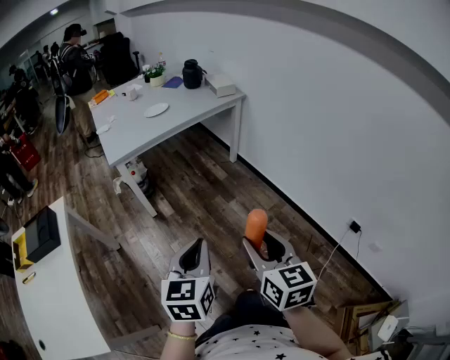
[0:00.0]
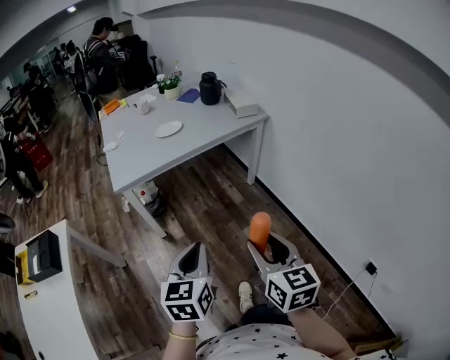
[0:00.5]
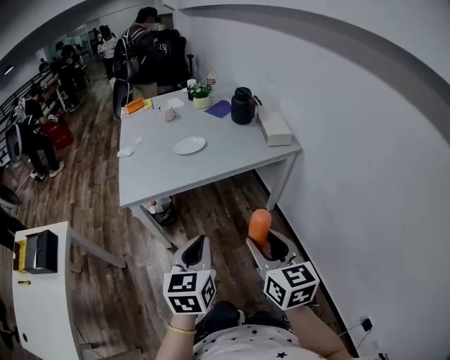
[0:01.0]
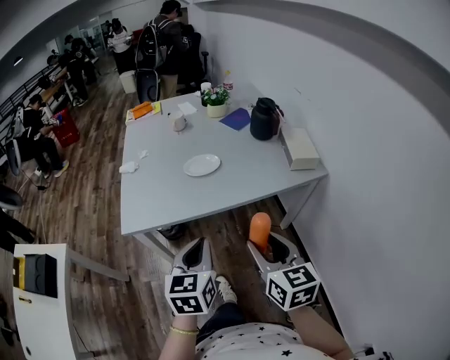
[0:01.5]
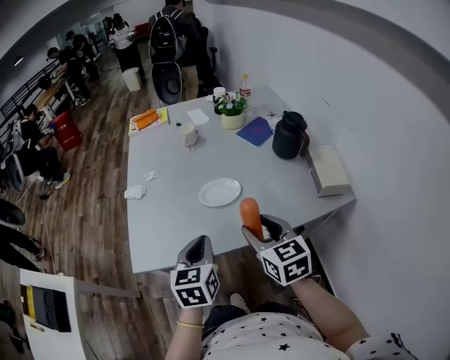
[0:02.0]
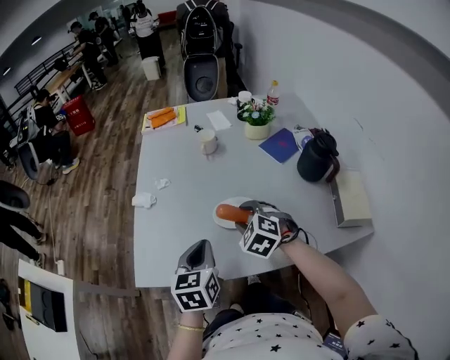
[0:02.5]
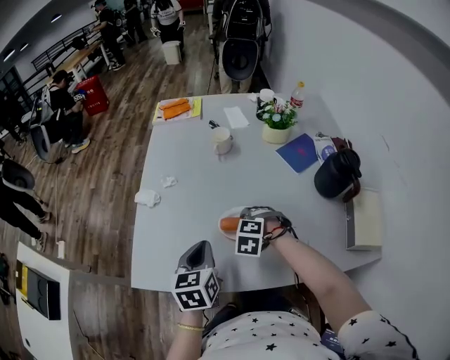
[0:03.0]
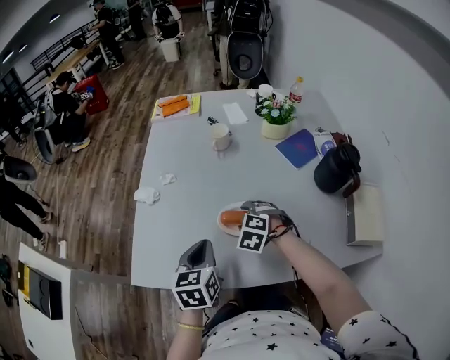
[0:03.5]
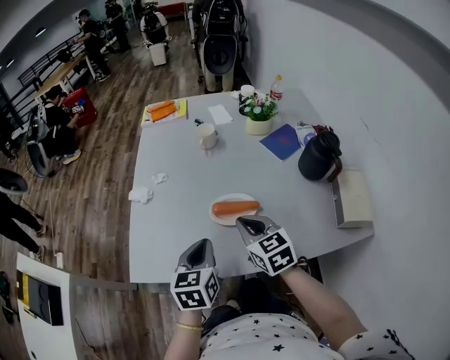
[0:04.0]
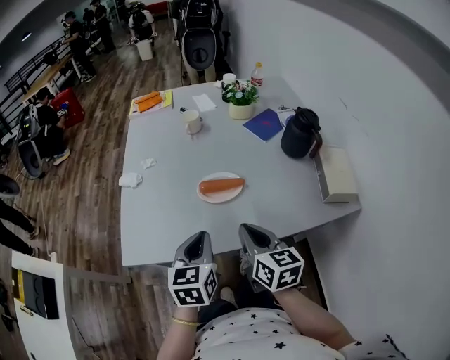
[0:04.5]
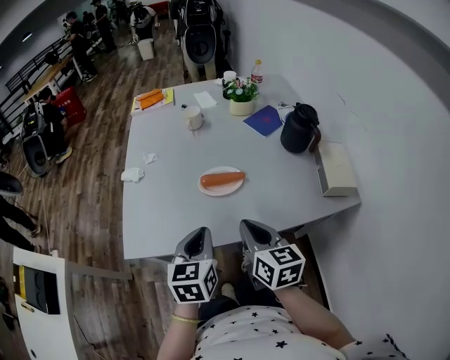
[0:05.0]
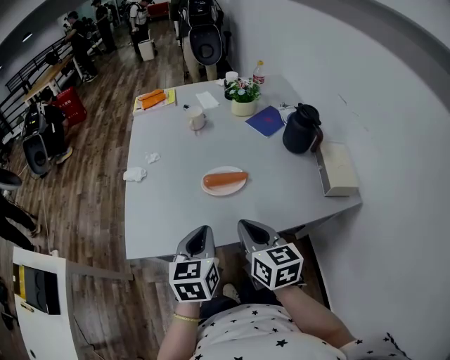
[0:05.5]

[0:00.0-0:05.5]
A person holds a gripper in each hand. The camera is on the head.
0:00.0 to 0:02.0: Both grippers are carried about 80 cm. The left gripper swivels roughly 30 degrees. Meanwhile the right gripper turns by some 30 degrees.
0:02.0 to 0:03.5: The left gripper moves forward, roughly 15 cm. Meanwhile the right gripper travels forward and downward by roughly 30 cm, and twists some 60 degrees counterclockwise, seen from behind.
0:03.5 to 0:05.5: The right gripper travels backward and upward by approximately 25 cm, rotates around the line of its fingers by approximately 70 degrees, clockwise from behind, and closes; the left gripper moves backward, about 15 cm.

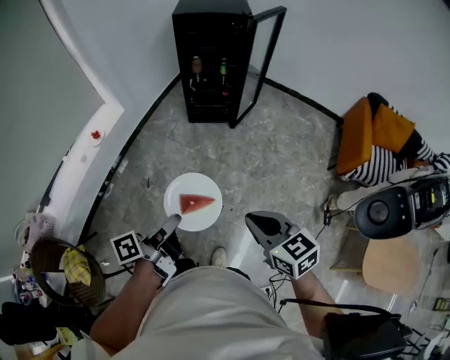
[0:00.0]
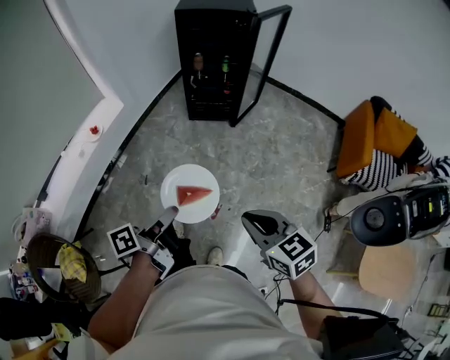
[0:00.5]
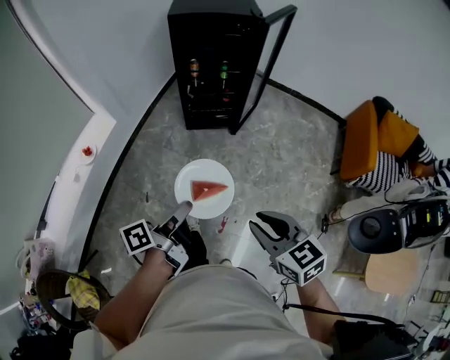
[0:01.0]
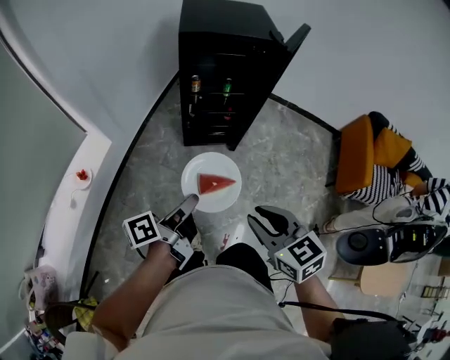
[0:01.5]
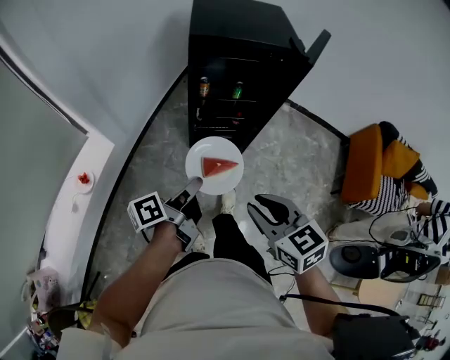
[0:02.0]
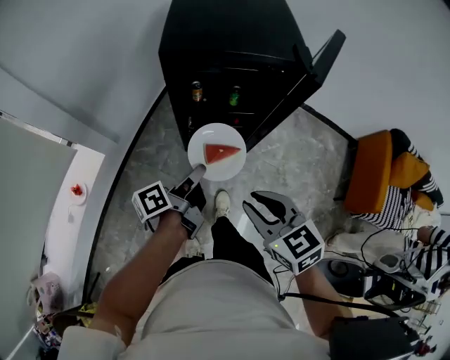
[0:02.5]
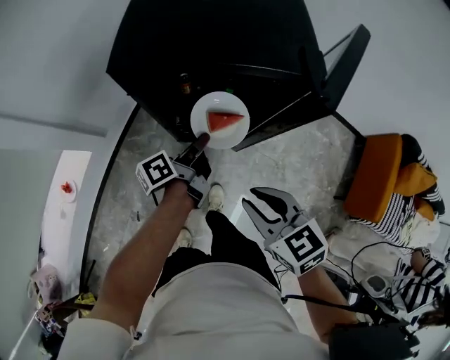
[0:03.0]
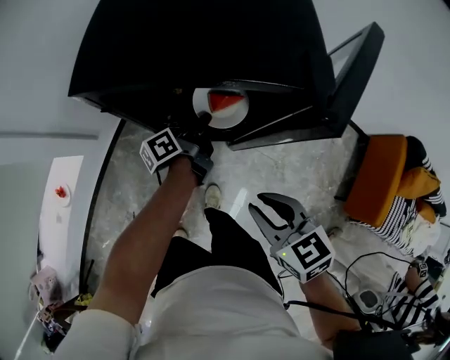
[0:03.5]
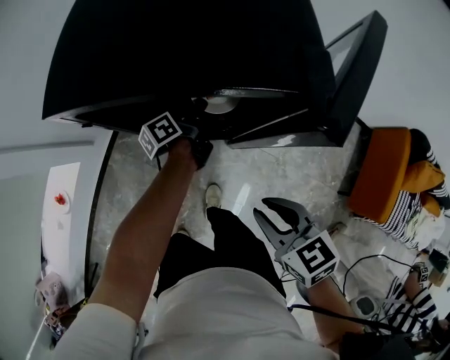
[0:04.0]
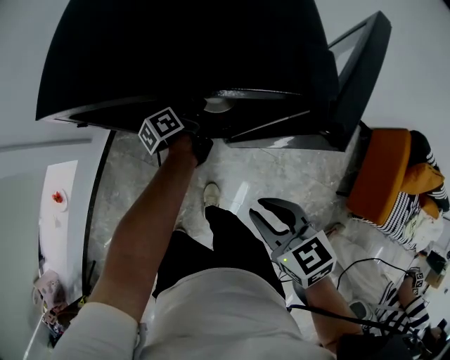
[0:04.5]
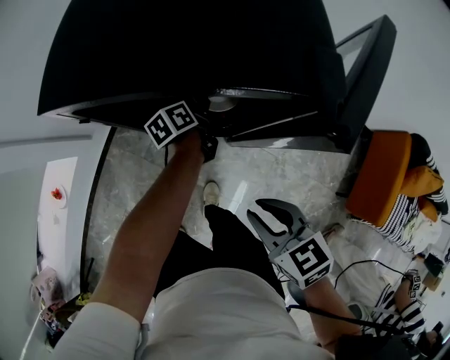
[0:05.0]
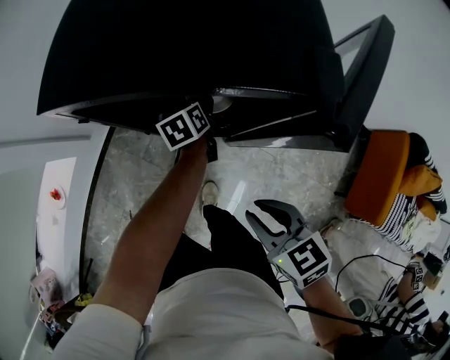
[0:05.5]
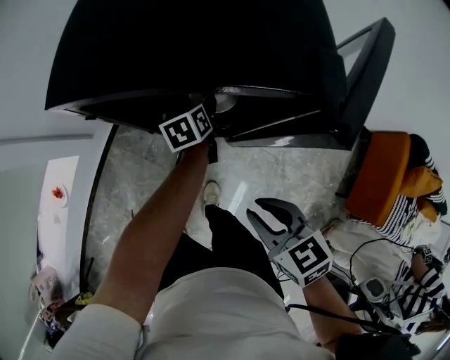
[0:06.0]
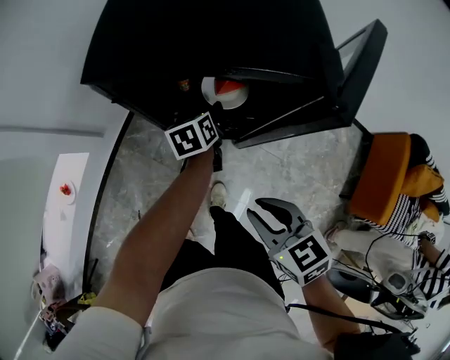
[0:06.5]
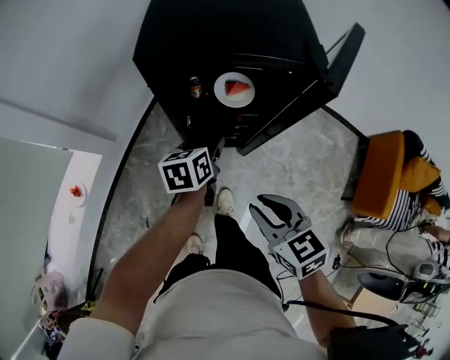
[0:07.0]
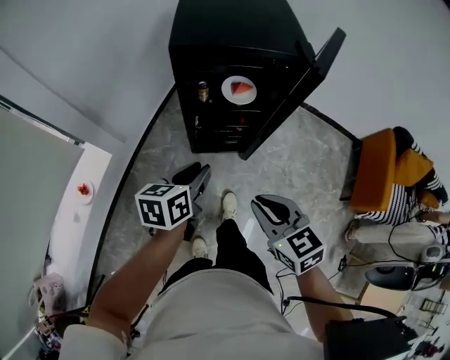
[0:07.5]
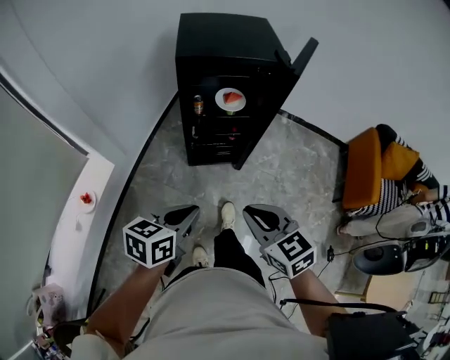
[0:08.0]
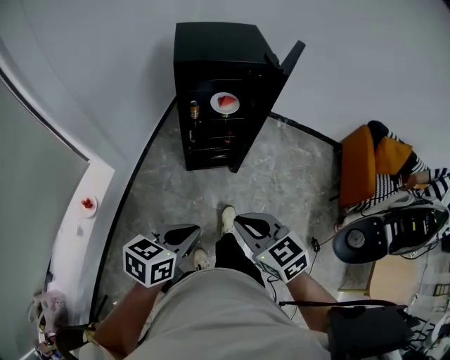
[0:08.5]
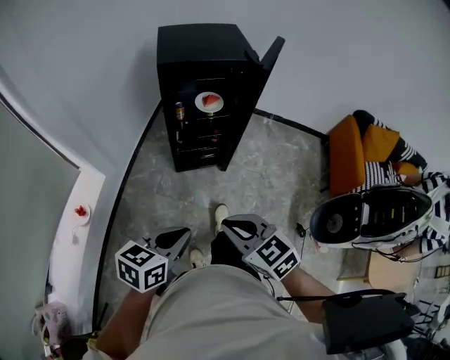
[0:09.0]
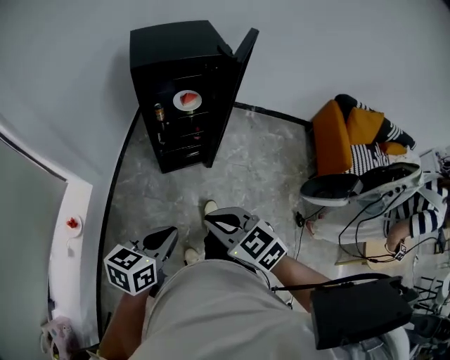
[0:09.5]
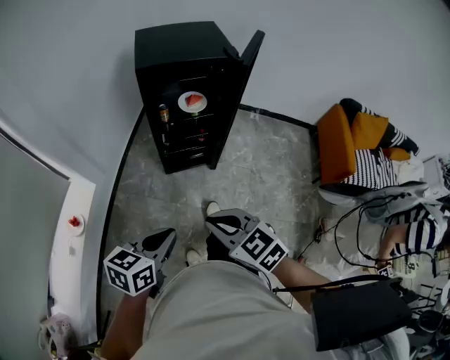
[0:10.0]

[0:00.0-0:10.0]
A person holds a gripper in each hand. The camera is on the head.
0:00.0 to 0:02.0: The two grippers travel together, forward, some 50 cm. The right gripper opens up.
0:02.0 to 0:04.0: Both grippers travel together forward and to the right, roughly 40 cm.
0:04.0 to 0:06.0: The left gripper turns by some 40 degrees, and opens.
0:06.0 to 0:08.0: The left gripper moves approximately 60 cm, rotates roughly 40 degrees, and closes its fingers; the right gripper shifts by approximately 35 cm.
0:08.0 to 0:10.0: Both grippers move backward, about 5 cm.

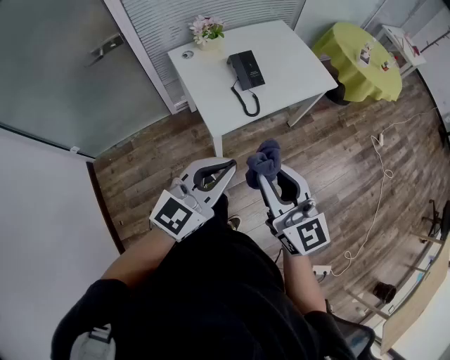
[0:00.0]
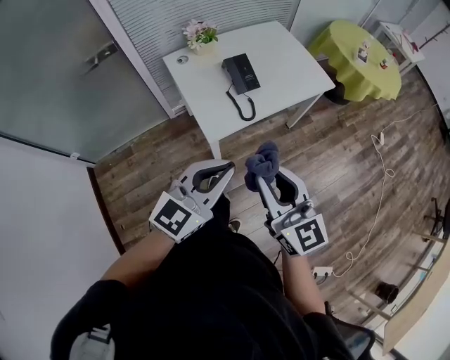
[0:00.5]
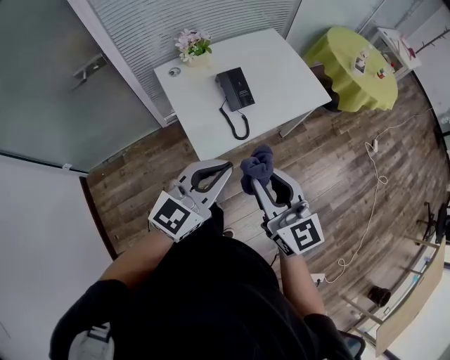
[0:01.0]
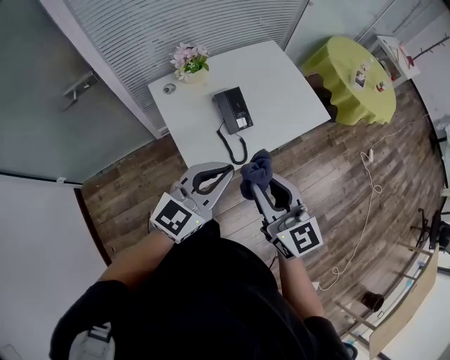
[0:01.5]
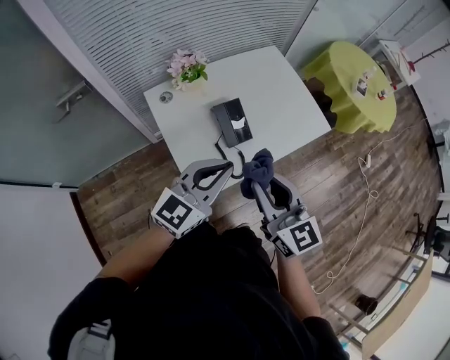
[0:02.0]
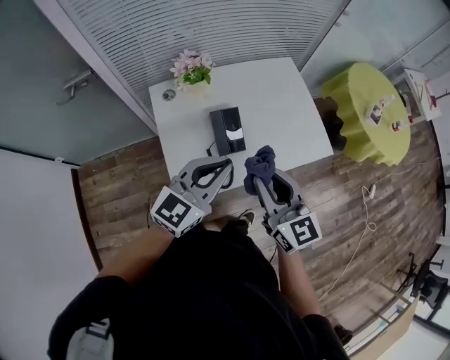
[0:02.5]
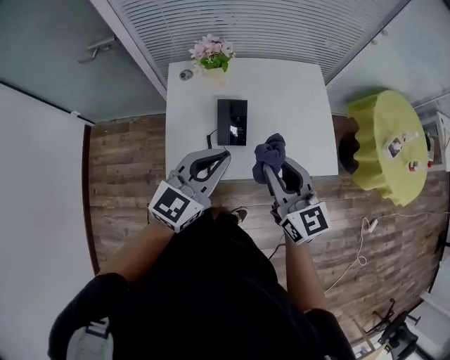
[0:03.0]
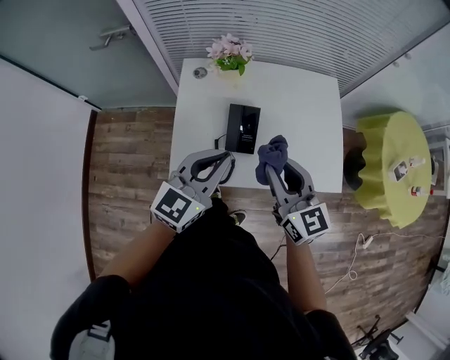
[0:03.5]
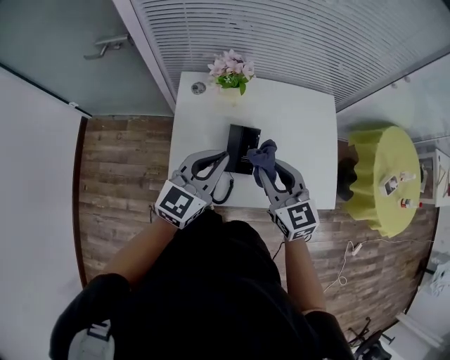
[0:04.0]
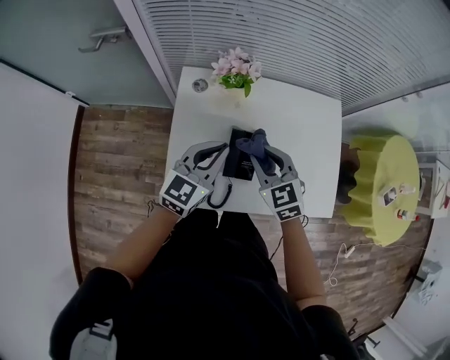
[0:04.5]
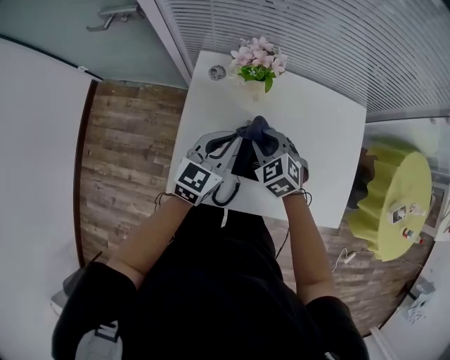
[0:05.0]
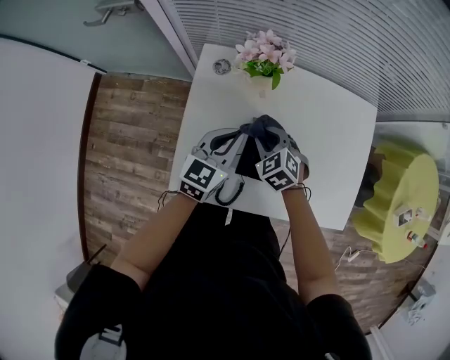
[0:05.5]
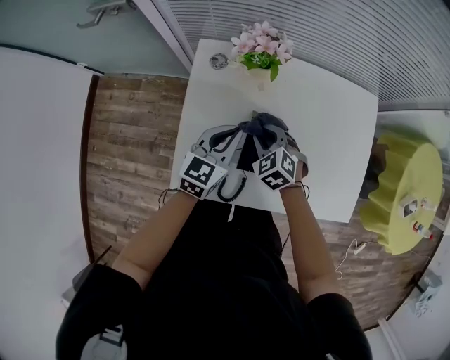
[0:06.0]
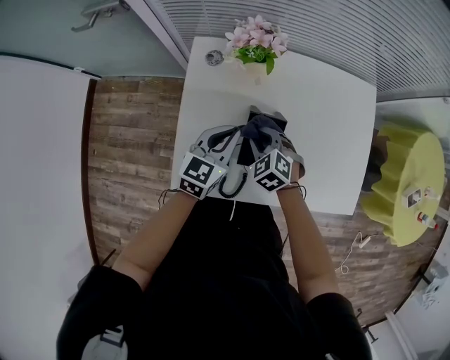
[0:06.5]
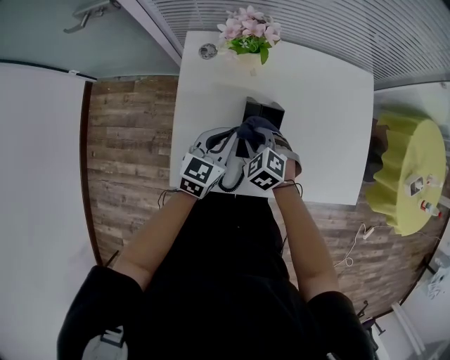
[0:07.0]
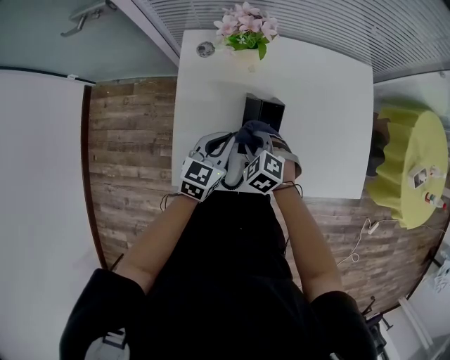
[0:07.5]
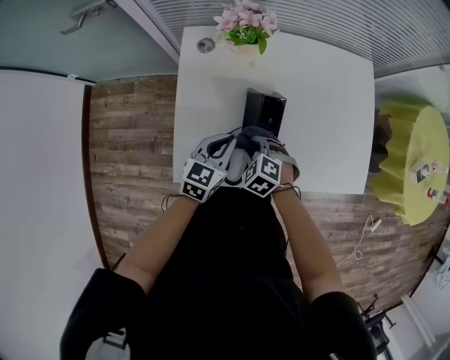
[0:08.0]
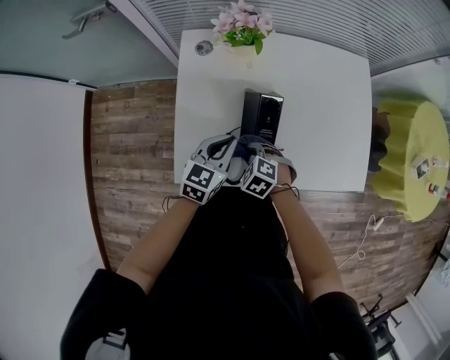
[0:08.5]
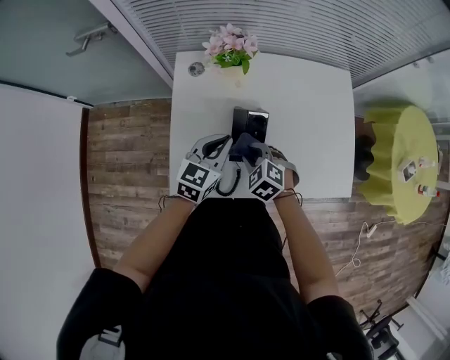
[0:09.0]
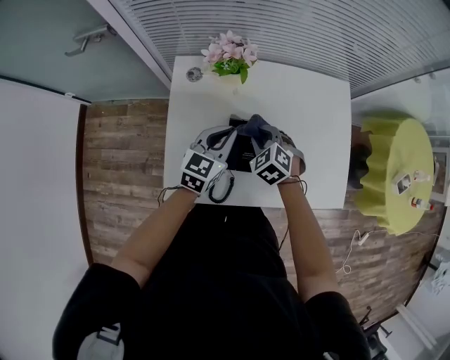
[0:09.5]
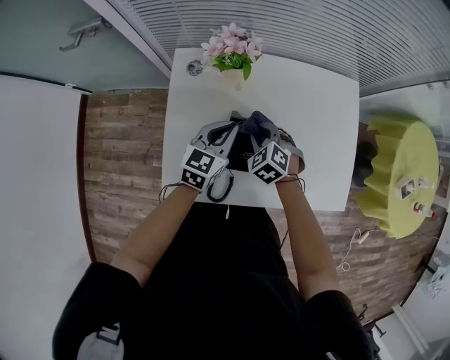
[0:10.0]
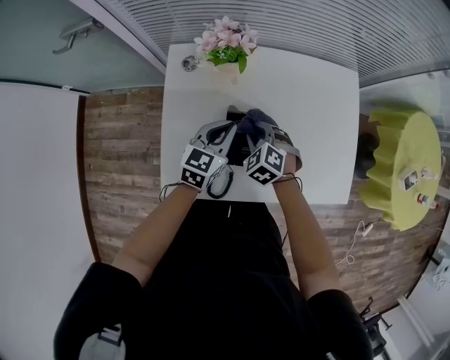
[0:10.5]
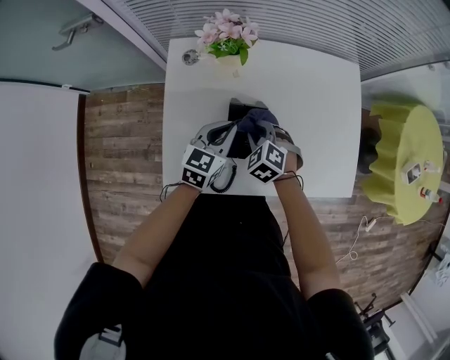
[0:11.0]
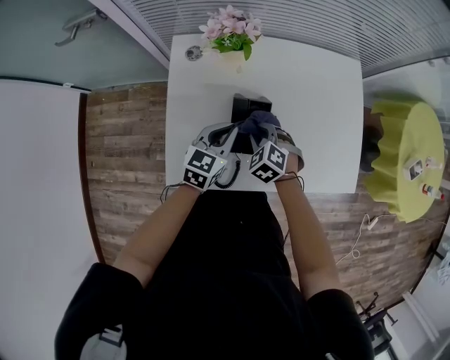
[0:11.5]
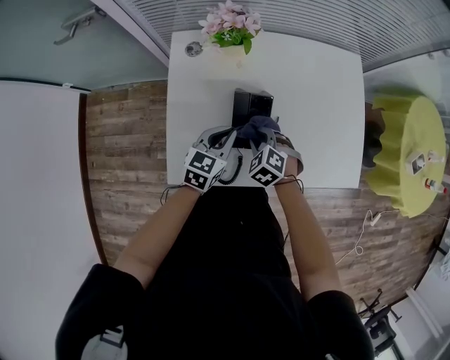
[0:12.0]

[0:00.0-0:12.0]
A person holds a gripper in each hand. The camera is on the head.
0:00.0 to 0:02.0: The two grippers go approximately 30 cm forward.
0:02.0 to 0:04.0: The left gripper ends up approximately 15 cm from where it was, and turns by roughly 40 degrees. The right gripper ends up approximately 20 cm from where it was, and turns by some 30 degrees.
0:04.0 to 0:06.0: The grippers both shift downward and forward by approximately 20 cm. The right gripper tips its fingers downward by approximately 30 degrees.
0:06.0 to 0:08.0: The grippers both shift backward and downward by about 10 cm.
0:08.0 to 0:10.0: The right gripper travels forward, to the right and upward by roughly 15 cm; the left gripper travels forward and upward by about 10 cm.
0:10.0 to 0:12.0: The right gripper shifts about 10 cm backward. The left gripper heads backward and downward, covering about 10 cm.
